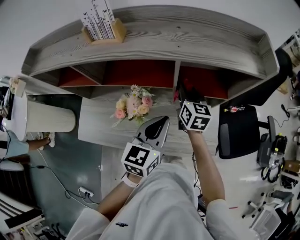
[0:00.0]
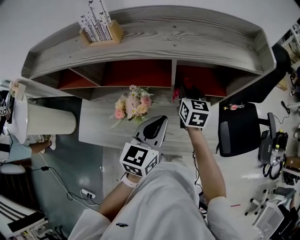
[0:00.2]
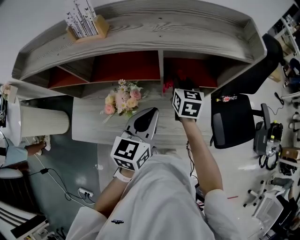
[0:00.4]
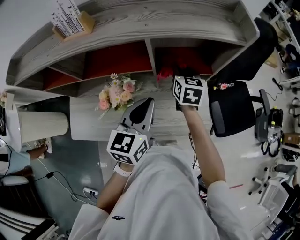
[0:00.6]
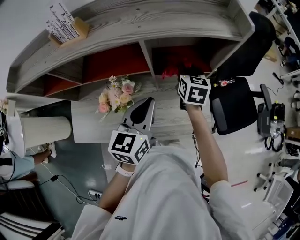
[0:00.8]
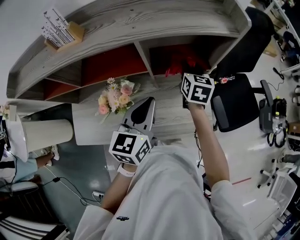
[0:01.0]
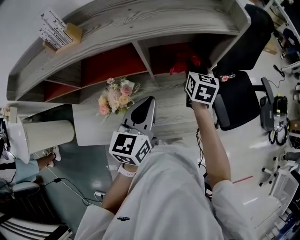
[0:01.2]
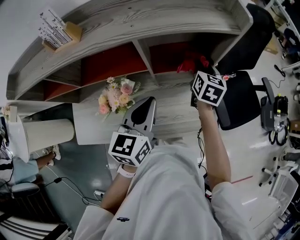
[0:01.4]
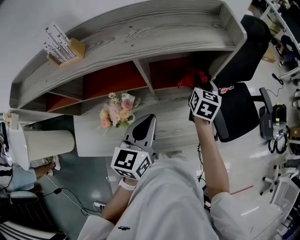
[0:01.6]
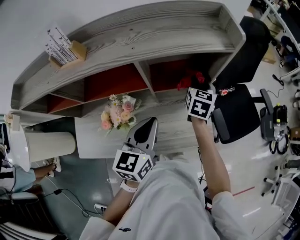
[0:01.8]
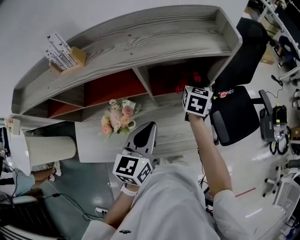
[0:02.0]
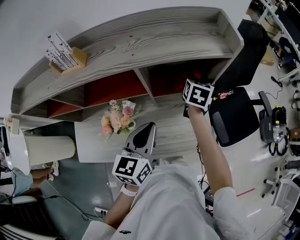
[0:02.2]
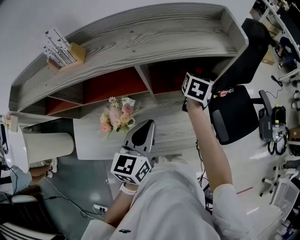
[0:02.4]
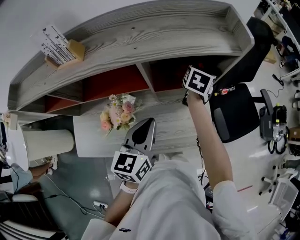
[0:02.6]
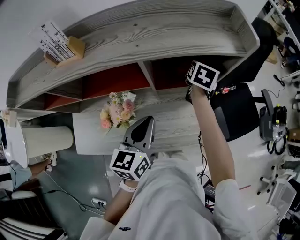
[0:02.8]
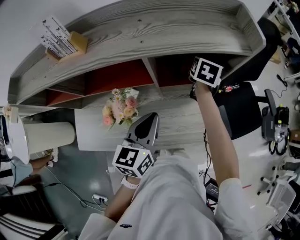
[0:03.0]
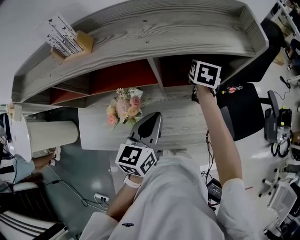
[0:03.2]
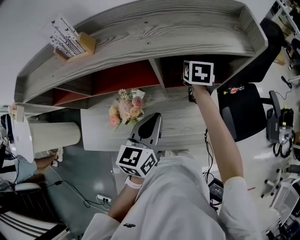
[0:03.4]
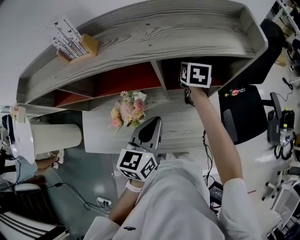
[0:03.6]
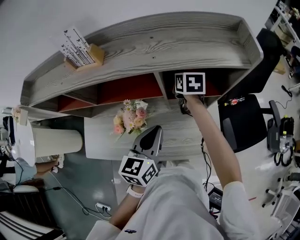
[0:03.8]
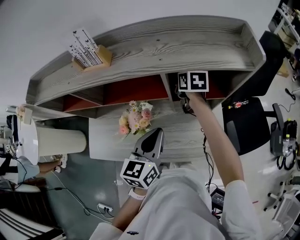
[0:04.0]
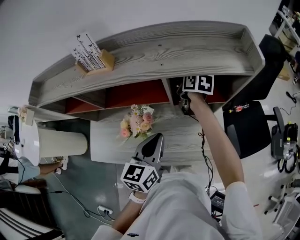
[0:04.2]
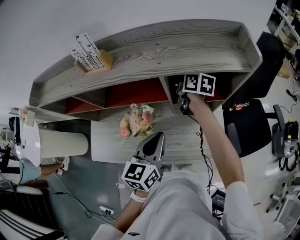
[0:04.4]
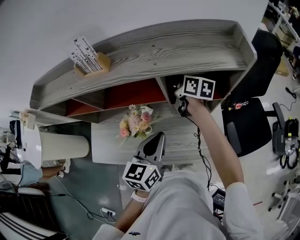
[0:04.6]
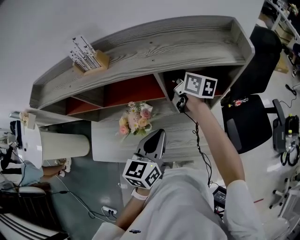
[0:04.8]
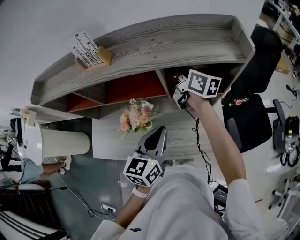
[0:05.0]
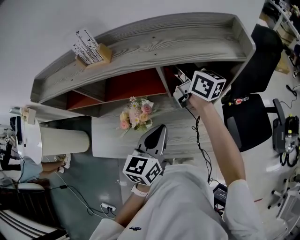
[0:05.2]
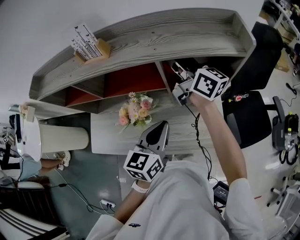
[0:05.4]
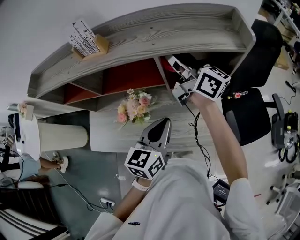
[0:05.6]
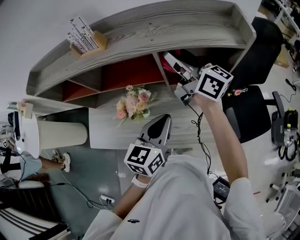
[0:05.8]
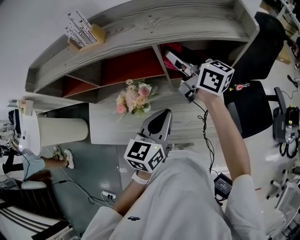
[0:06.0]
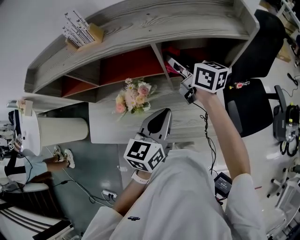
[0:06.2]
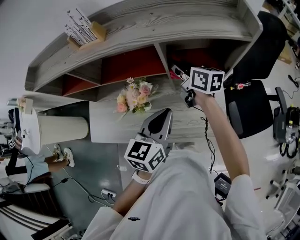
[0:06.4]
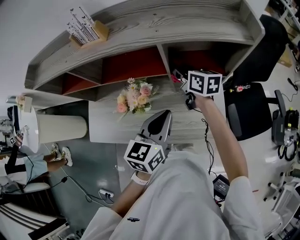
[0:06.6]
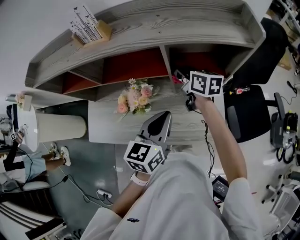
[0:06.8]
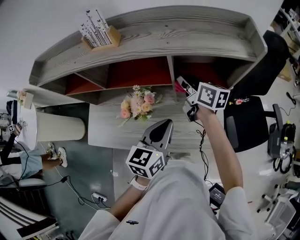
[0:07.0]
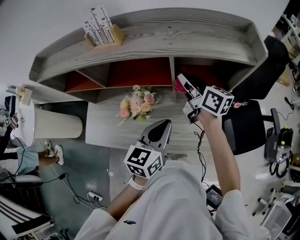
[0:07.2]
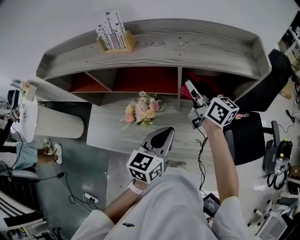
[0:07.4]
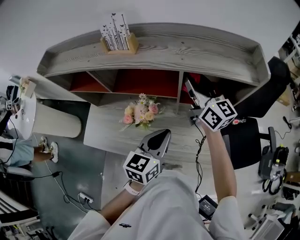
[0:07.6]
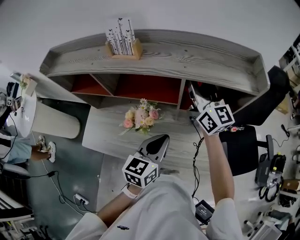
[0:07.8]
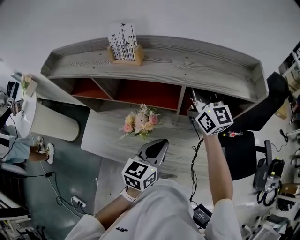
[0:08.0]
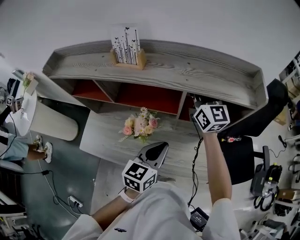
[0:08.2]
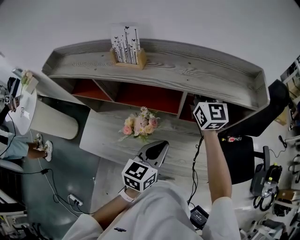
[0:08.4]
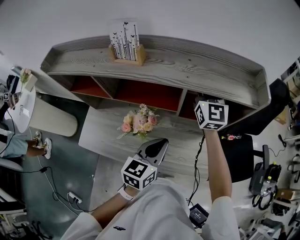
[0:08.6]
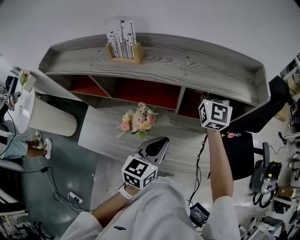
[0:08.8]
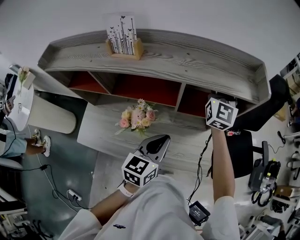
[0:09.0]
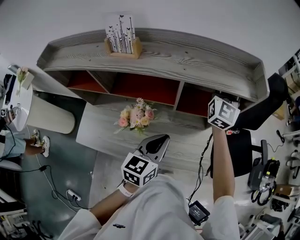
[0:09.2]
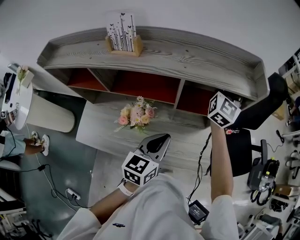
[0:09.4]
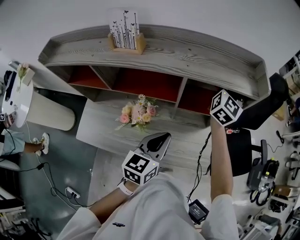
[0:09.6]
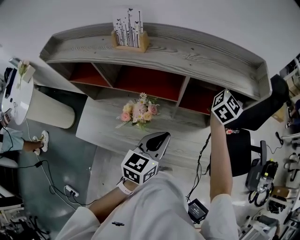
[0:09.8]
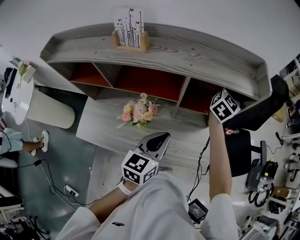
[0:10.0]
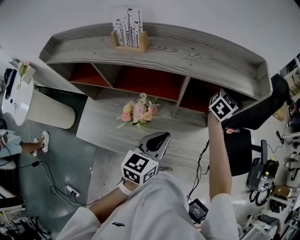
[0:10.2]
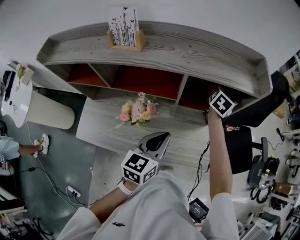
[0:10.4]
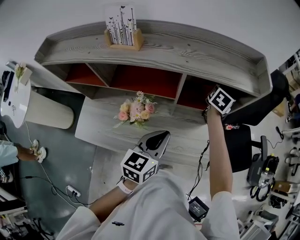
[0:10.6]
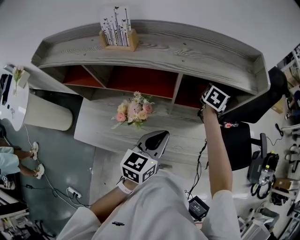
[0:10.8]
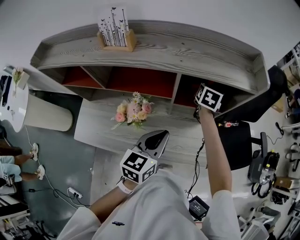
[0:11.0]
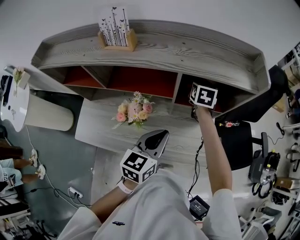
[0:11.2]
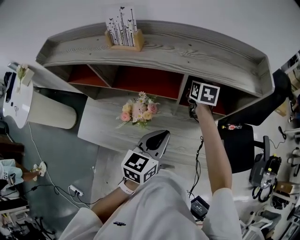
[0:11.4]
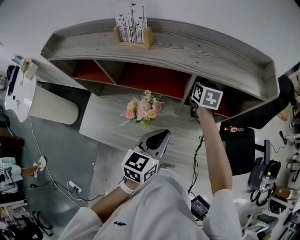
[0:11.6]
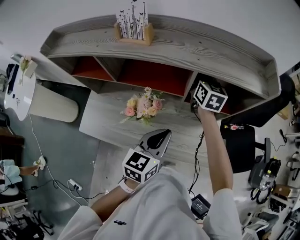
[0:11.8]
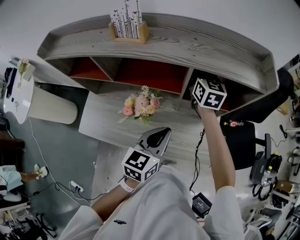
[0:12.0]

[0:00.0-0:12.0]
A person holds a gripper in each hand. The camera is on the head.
0:00.0 to 0:01.6: The right gripper is displaced to the right by some 20 cm, and swivels some 30 degrees.
0:01.6 to 0:03.0: The right gripper travels forward by some 10 cm.
0:03.0 to 0:04.4: The right gripper changes place by about 20 cm, and turns by some 50 degrees.
0:04.4 to 0:06.0: The right gripper travels upward and backward by some 15 cm, and points its fingers some 30 degrees further upward.
0:06.0 to 0:07.6: The right gripper goes downward and returns, approximately 15 cm each way.
0:07.6 to 0:09.0: The right gripper goes some 10 cm to the right and forward, and rotates approximately 50 degrees.
0:09.0 to 0:10.4: The right gripper goes roughly 15 cm downward and to the right, and tips its fingers downward by roughly 40 degrees.
0:10.4 to 0:12.0: The right gripper is displaced to the left by roughly 20 cm, and swivels approximately 40 degrees.

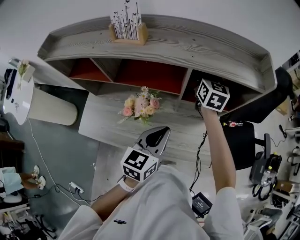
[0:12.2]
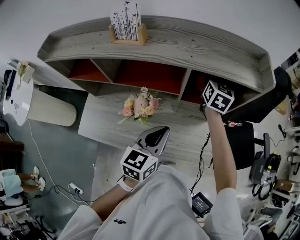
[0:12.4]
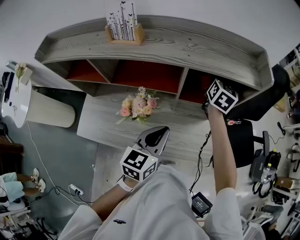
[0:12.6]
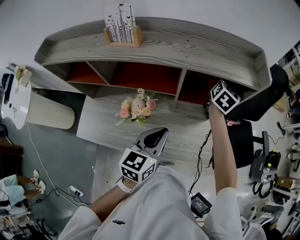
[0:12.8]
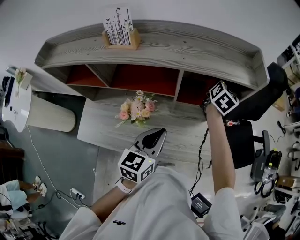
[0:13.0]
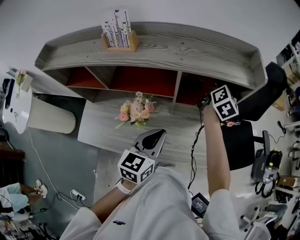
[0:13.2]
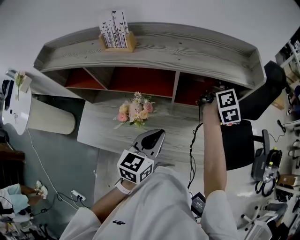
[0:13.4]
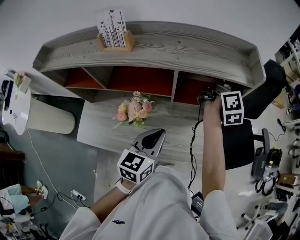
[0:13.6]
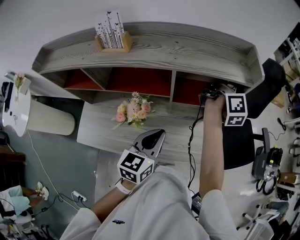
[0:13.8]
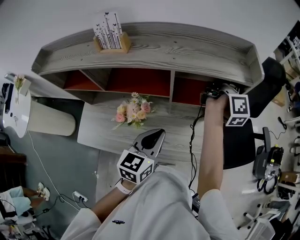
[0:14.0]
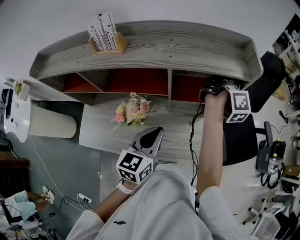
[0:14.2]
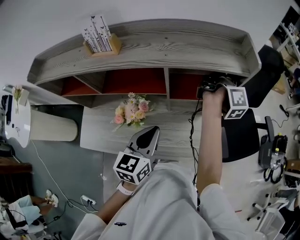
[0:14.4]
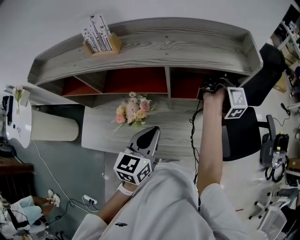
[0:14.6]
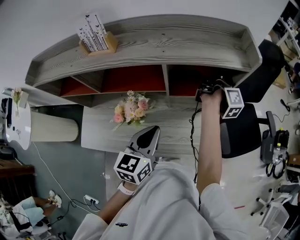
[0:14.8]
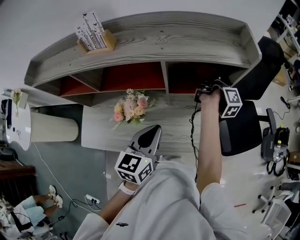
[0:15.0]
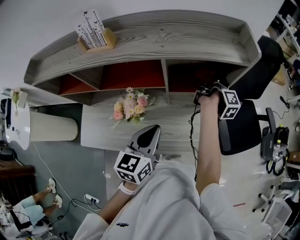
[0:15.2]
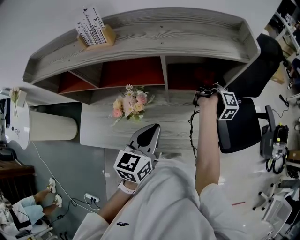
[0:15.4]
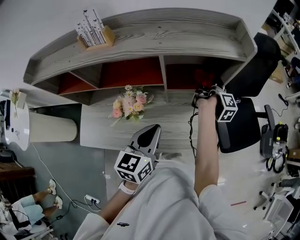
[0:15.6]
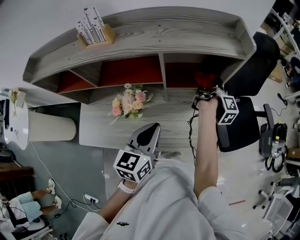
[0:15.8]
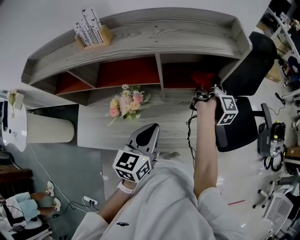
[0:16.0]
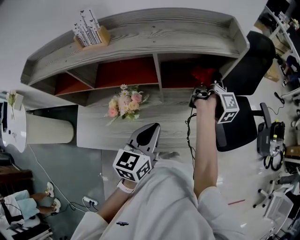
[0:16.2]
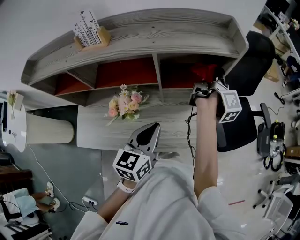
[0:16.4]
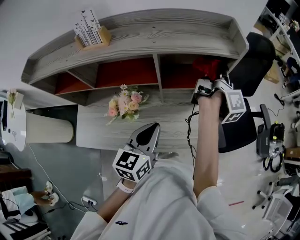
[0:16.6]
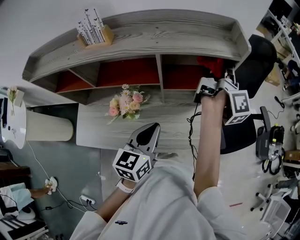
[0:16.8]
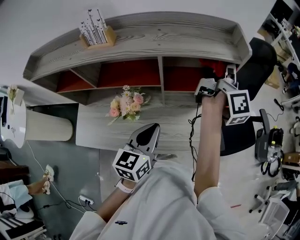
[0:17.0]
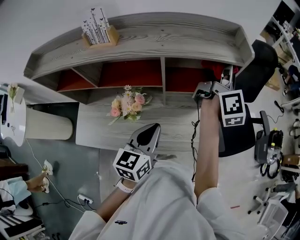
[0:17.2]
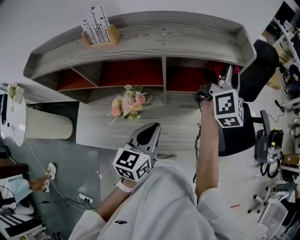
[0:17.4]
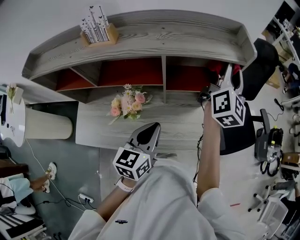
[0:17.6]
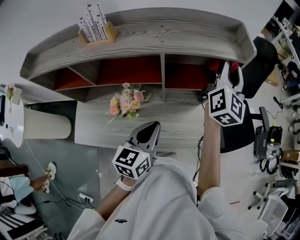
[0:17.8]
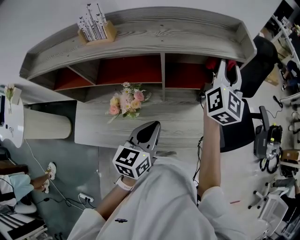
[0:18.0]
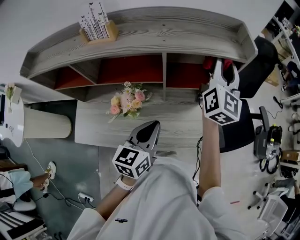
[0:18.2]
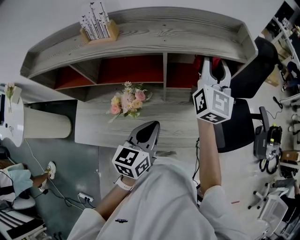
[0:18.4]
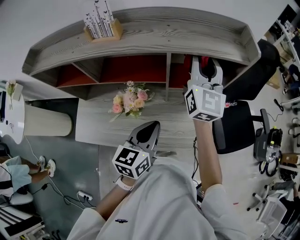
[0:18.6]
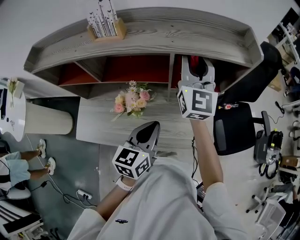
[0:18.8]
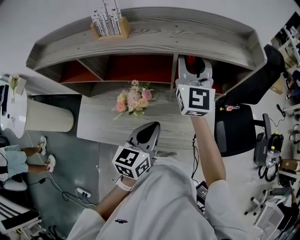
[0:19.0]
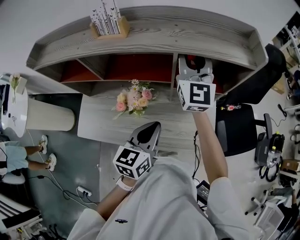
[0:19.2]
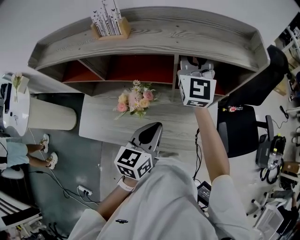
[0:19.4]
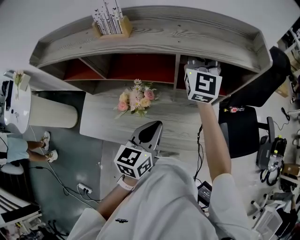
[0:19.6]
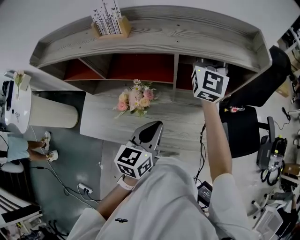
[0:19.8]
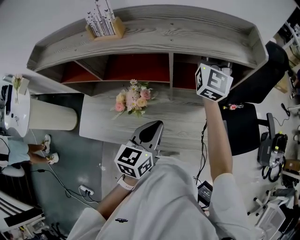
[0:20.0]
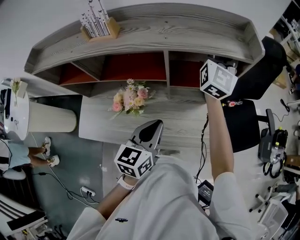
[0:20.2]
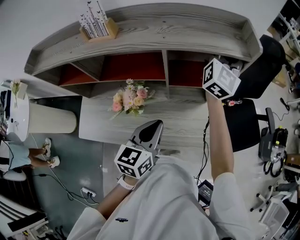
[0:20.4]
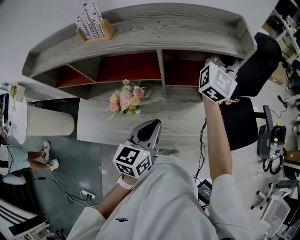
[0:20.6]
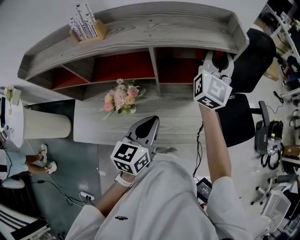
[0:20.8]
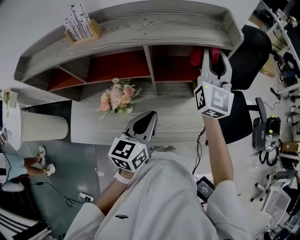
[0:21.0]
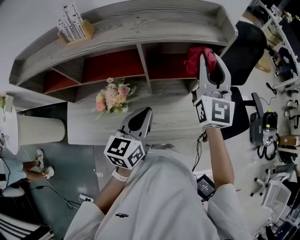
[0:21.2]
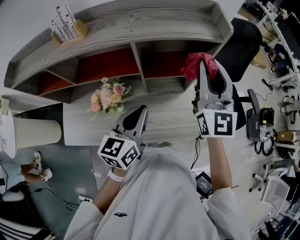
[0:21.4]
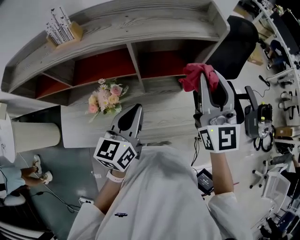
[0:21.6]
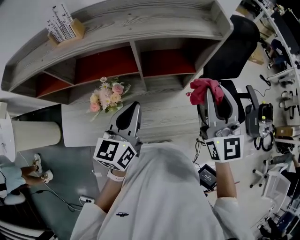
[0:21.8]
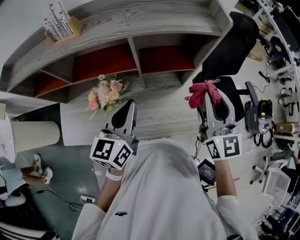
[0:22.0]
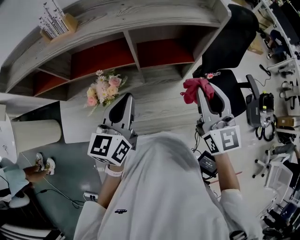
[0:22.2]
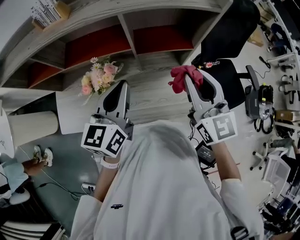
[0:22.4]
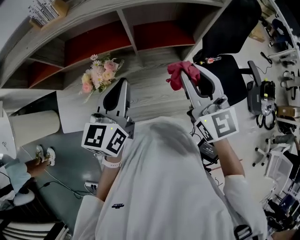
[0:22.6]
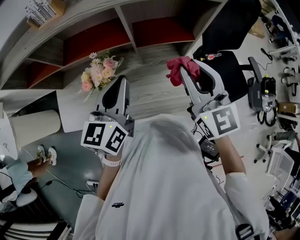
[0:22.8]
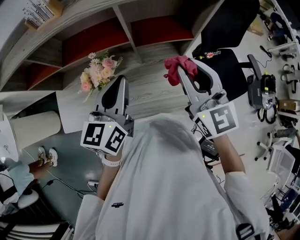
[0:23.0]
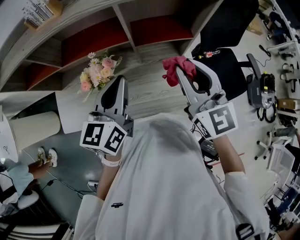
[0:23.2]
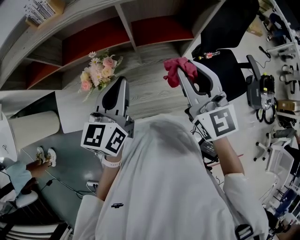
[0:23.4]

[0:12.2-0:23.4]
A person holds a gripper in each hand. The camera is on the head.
0:12.2 to 0:13.8: The right gripper travels to the right by some 20 cm, and swivels roughly 70 degrees.
0:13.8 to 0:15.4: The right gripper heads downward, covering approximately 20 cm, and swivels about 40 degrees.
0:15.4 to 0:17.0: The right gripper is displaced upward by roughly 20 cm, and tips its fingers upward by about 30 degrees.
0:17.0 to 0:18.6: The right gripper is displaced to the left by approximately 15 cm, and rolls counterclockwise, seen from behind, by roughly 60 degrees.
0:18.6 to 0:20.2: The right gripper goes some 10 cm forward and to the right.
0:20.2 to 0:21.8: The right gripper goes some 25 cm backward and to the right, and turns by about 20 degrees. The left gripper heads upward, covering roughly 5 cm.
0:21.8 to 0:23.4: The right gripper is displaced to the left by about 5 cm.

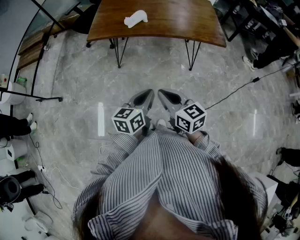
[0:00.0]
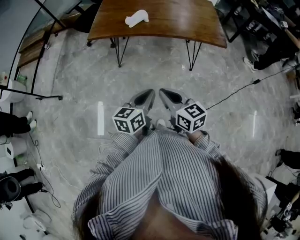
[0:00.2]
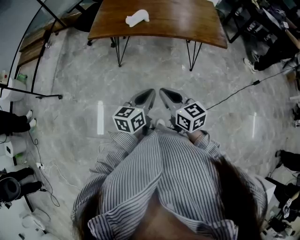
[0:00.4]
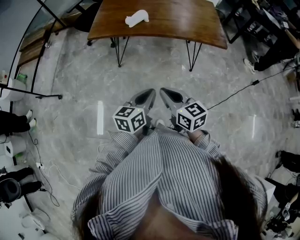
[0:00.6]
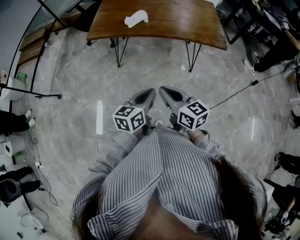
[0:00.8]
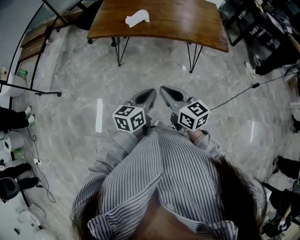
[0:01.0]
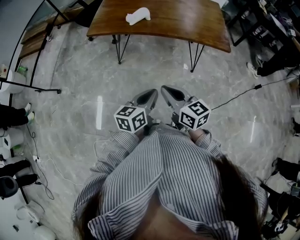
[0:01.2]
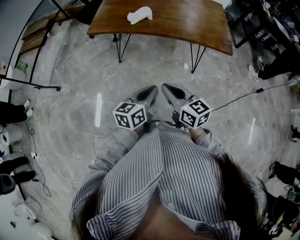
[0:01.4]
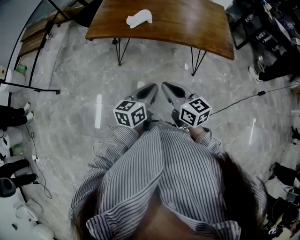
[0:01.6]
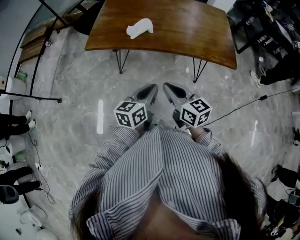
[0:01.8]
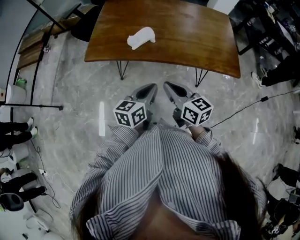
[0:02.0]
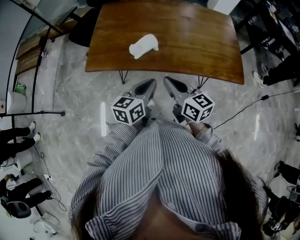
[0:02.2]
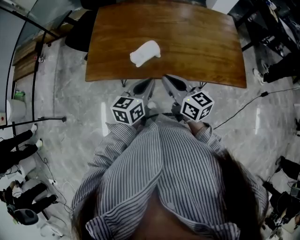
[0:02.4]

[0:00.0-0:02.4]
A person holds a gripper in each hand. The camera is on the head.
0:00.0 to 0:01.2: The left gripper moves some 5 cm; the right gripper moves approximately 5 cm.
0:01.2 to 0:02.4: The two grippers go roughly 35 cm forward.
